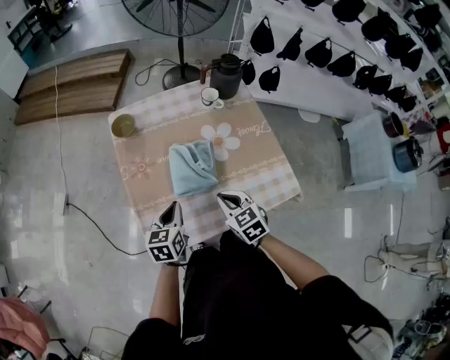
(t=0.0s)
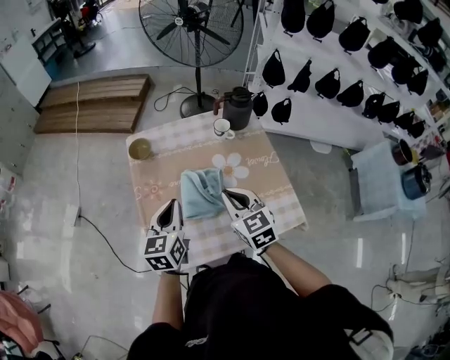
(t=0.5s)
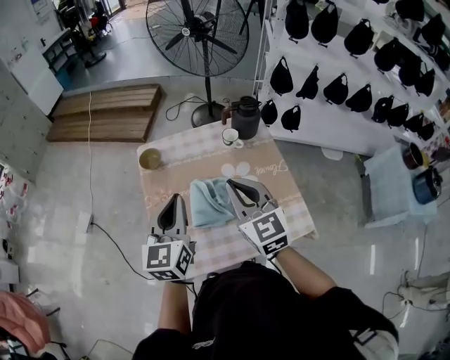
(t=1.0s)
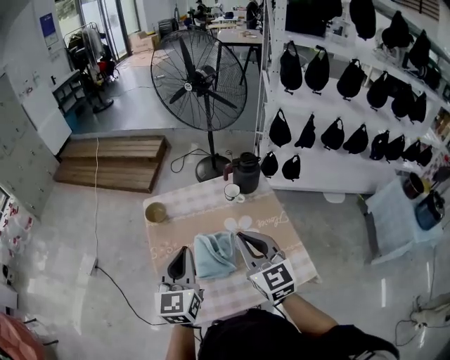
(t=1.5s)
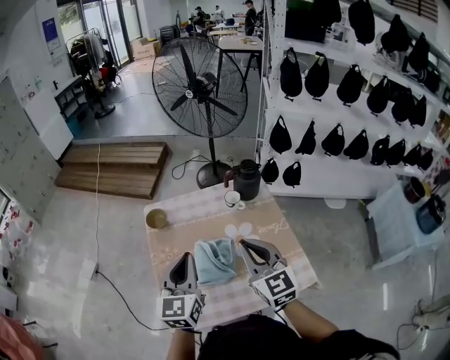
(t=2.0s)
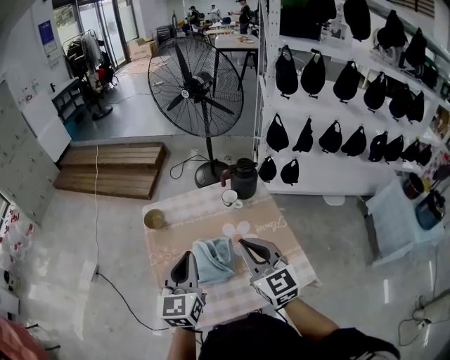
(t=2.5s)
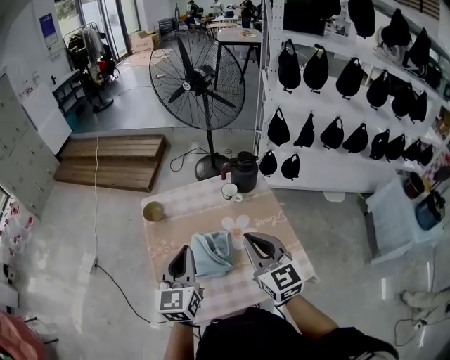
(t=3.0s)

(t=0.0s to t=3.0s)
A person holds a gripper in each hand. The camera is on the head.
t=0.0s - t=1.5s: Both grippers travel together upward, approximately 25 cm. The right gripper angles its fingers upward, by about 30 degrees, while the left gripper swivels about 30 degrees.
t=1.5s - t=3.0s: The grippers stay close to where they were, moving slightly.

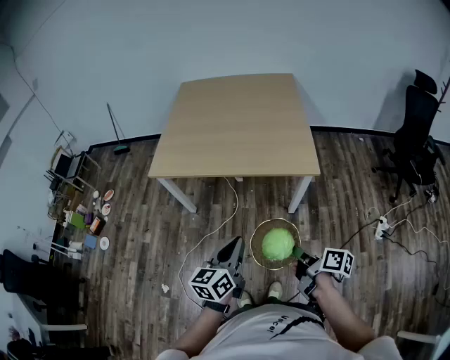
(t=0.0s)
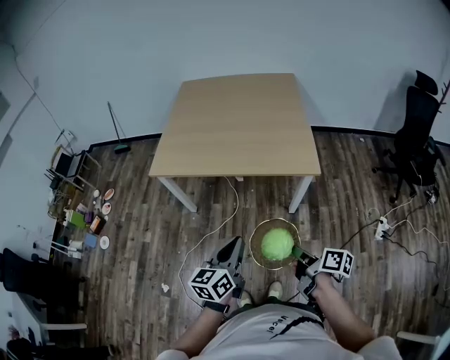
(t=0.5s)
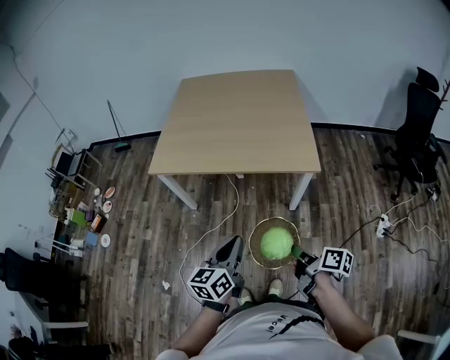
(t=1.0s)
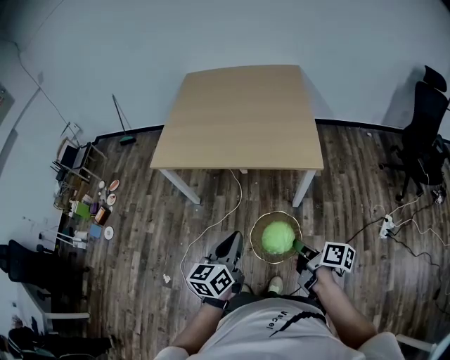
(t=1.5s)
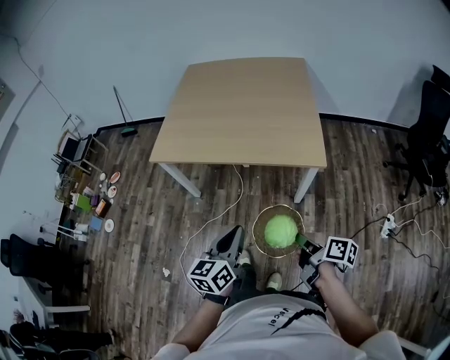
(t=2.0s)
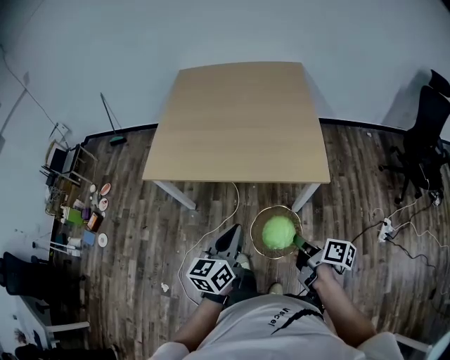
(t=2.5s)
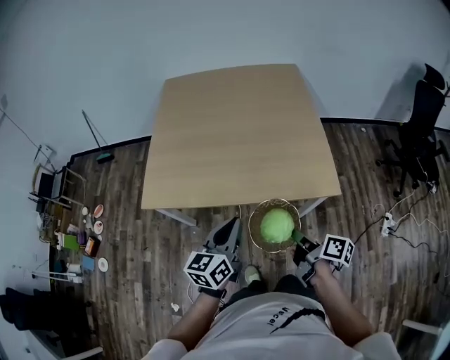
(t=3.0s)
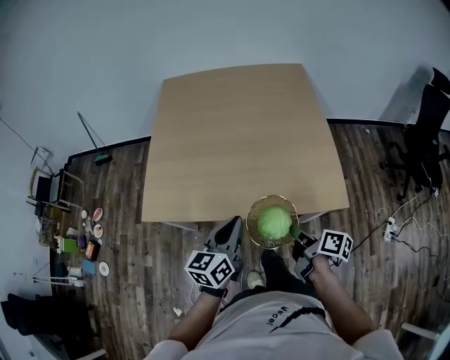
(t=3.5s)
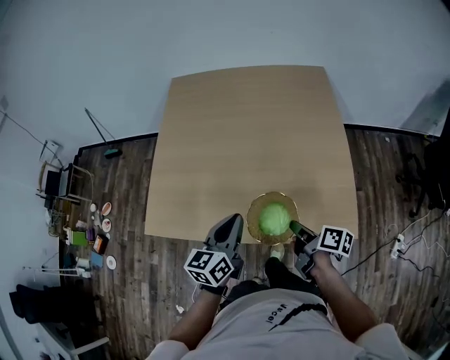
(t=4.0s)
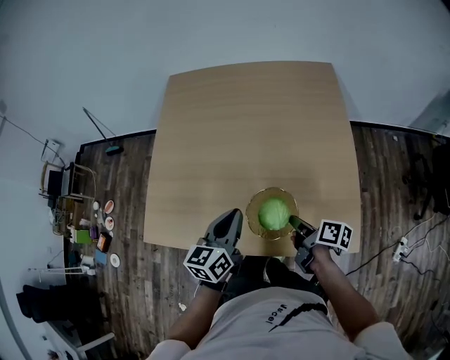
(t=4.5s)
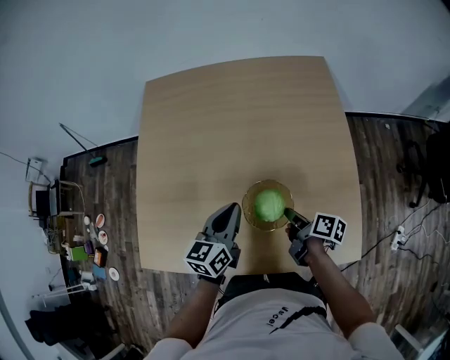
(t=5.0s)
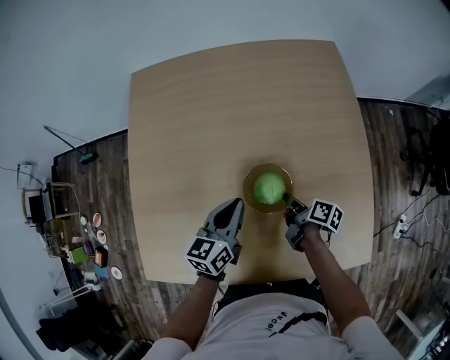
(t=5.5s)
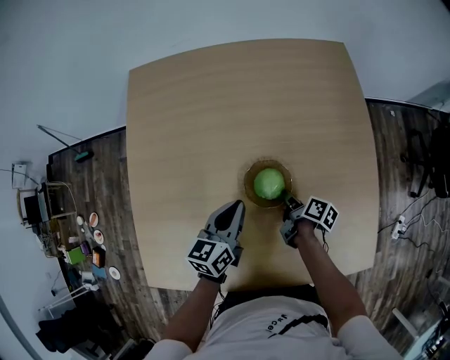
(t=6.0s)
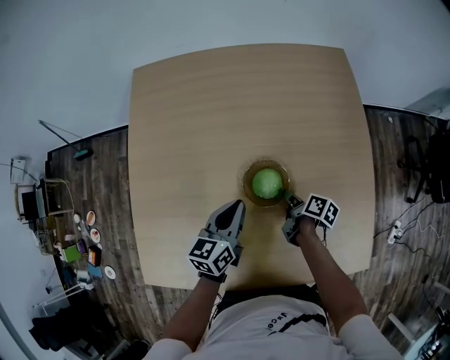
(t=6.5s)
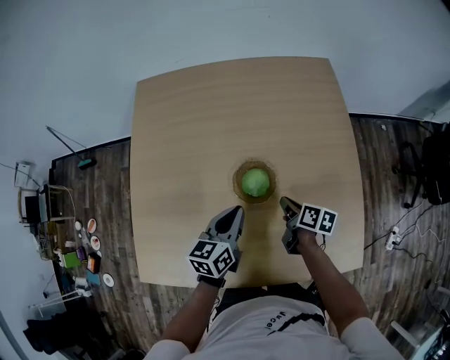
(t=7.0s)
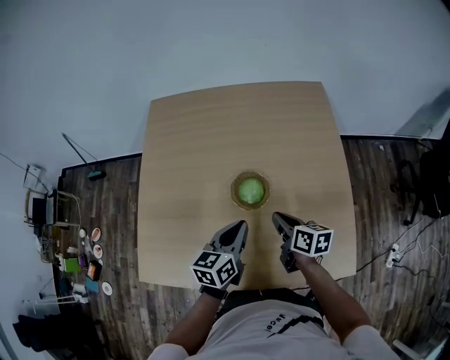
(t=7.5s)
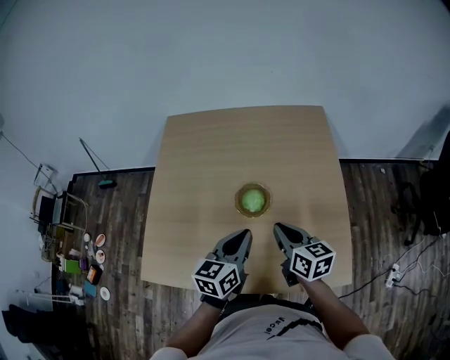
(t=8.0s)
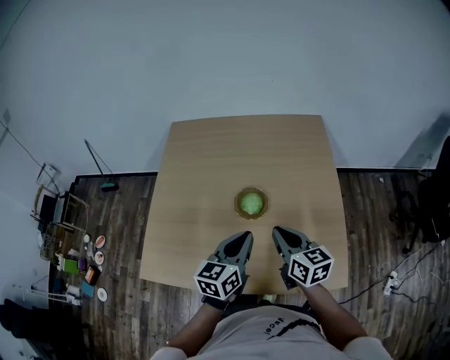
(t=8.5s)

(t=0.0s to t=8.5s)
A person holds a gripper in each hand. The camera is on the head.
t=2.0s - t=4.0s: The left gripper shifts by about 50 cm.
t=4.0s - t=6.5s: The left gripper ends up roughly 30 cm from where it was.
t=6.5s - t=8.5s: The left gripper shifts by some 25 cm.

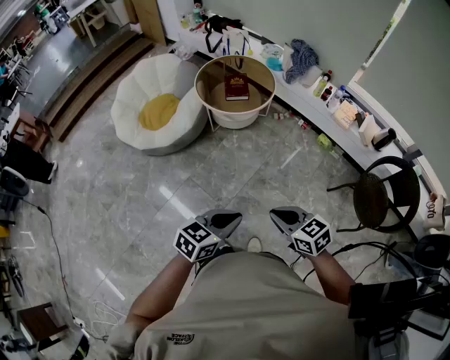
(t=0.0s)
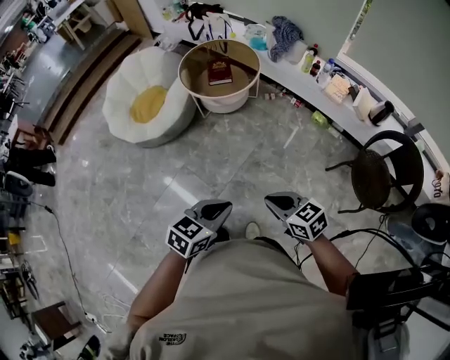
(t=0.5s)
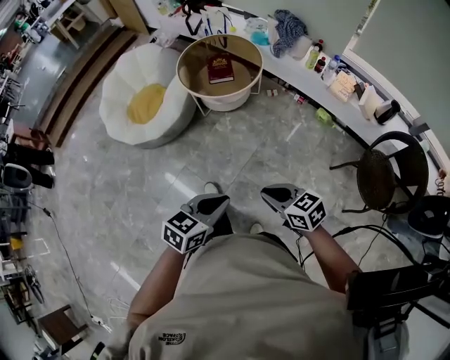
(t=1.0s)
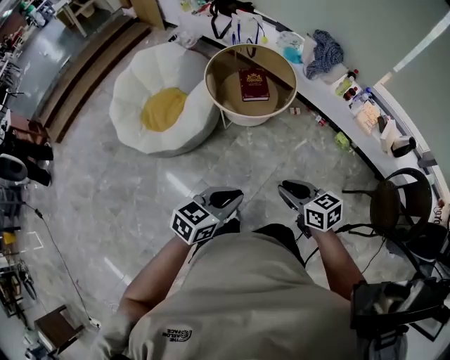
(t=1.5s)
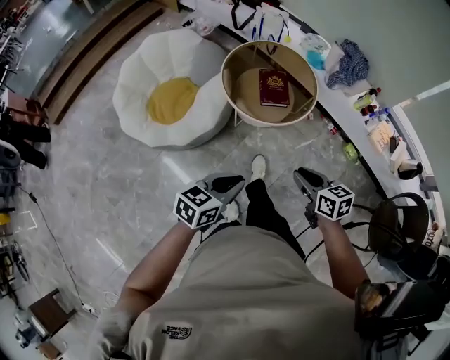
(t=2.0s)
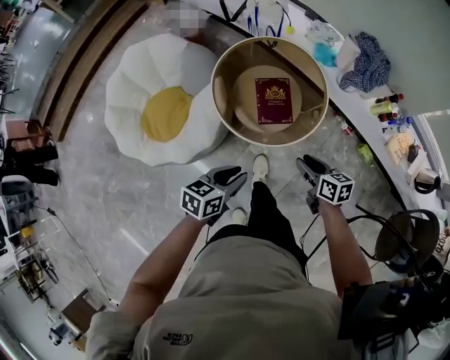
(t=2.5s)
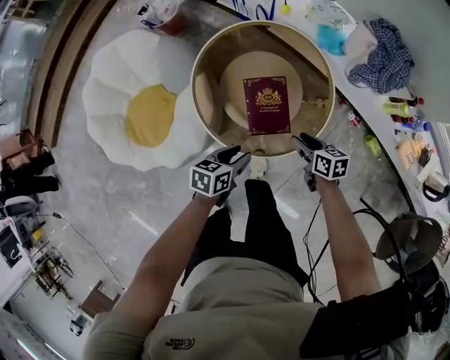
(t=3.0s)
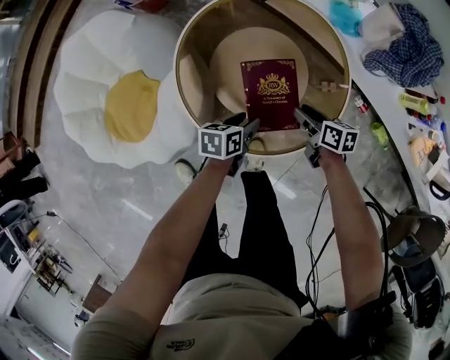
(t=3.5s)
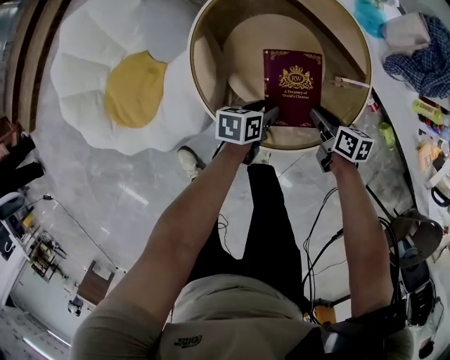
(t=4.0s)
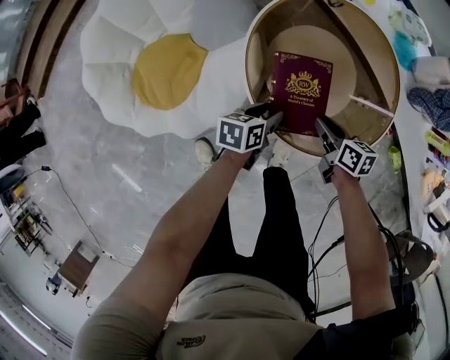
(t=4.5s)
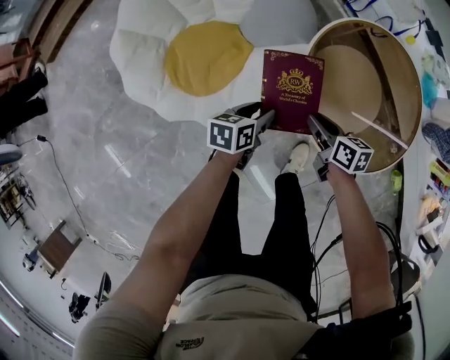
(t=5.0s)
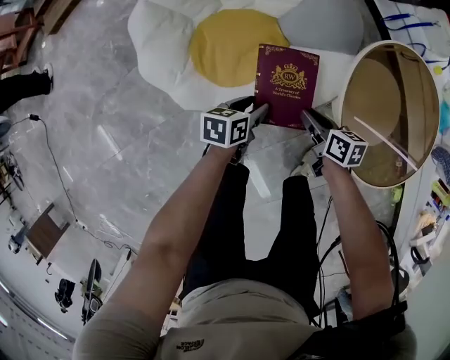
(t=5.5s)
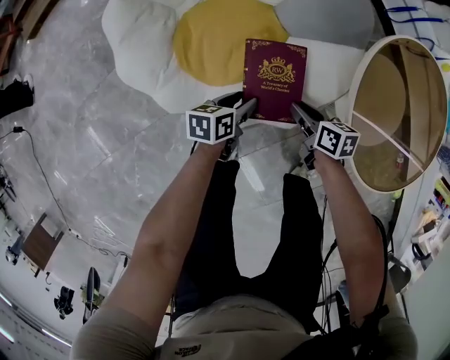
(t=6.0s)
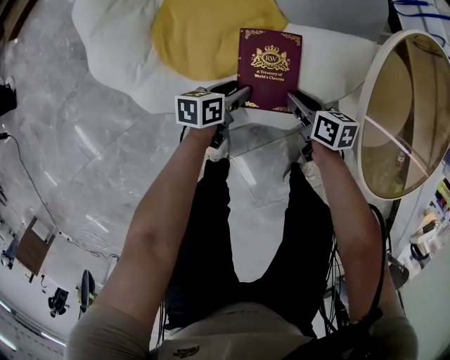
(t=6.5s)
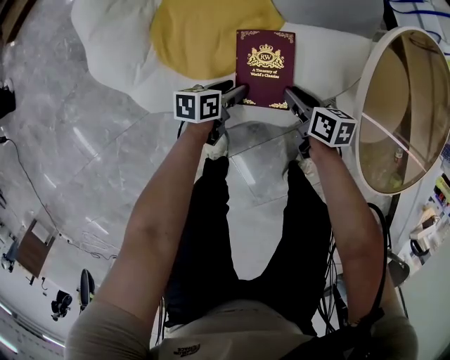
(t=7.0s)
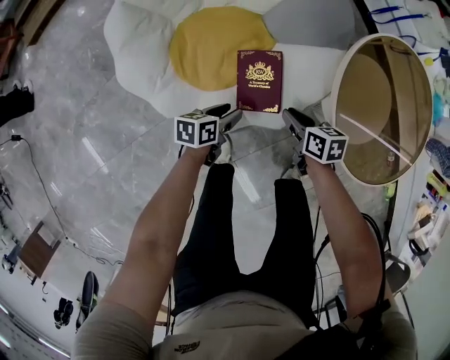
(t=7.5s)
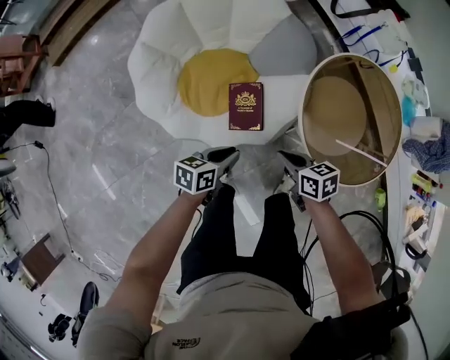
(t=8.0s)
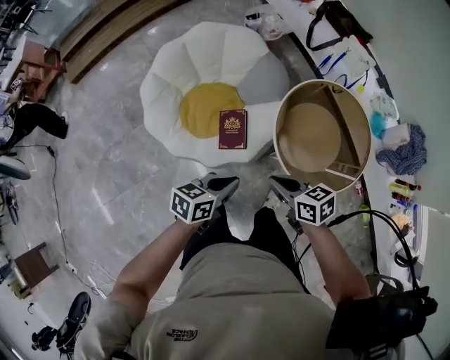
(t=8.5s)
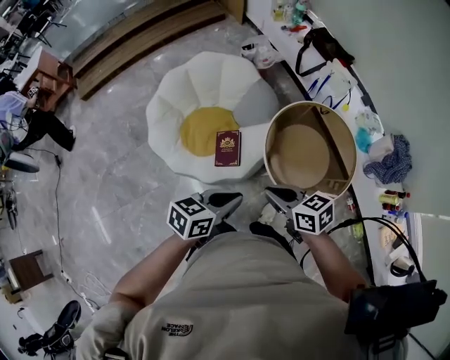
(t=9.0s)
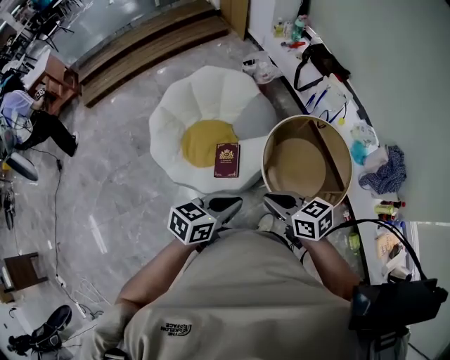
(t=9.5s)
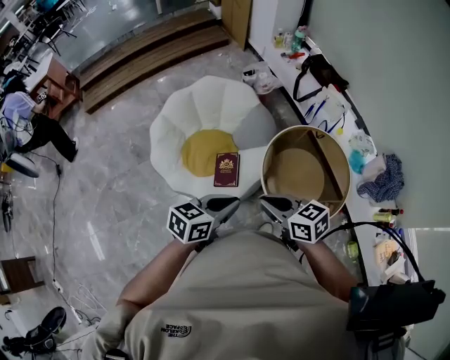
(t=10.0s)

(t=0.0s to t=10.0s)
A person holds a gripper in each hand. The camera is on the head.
t=0.0s - t=2.0s: The two grippers travel together, forward, about 40 cm.
t=2.0s - t=4.0s: The pair of grippers is taken forward, roughly 50 cm. The two grippers go about 40 cm downward. The right gripper changes its angle by about 30 degrees; the left gripper swivels some 40 degrees, and opens up.
t=4.0s - t=6.0s: The two grippers travel together, about 50 cm. The right gripper turns by roughly 30 degrees; the left gripper changes its angle by approximately 20 degrees.
t=6.0s - t=8.0s: Both grippers move upward, some 25 cm. The left gripper closes up; the right gripper closes its fingers.
t=8.0s - t=10.0s: Both grippers move upward, approximately 35 cm. The left gripper rotates approximately 20 degrees. Meanwhile the right gripper swivels approximately 30 degrees.

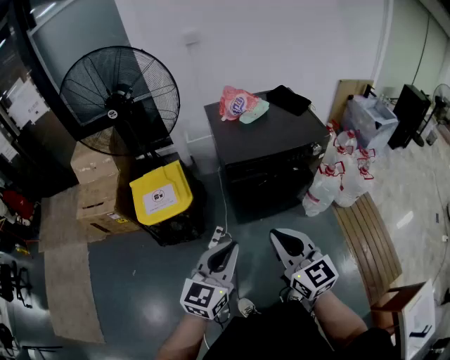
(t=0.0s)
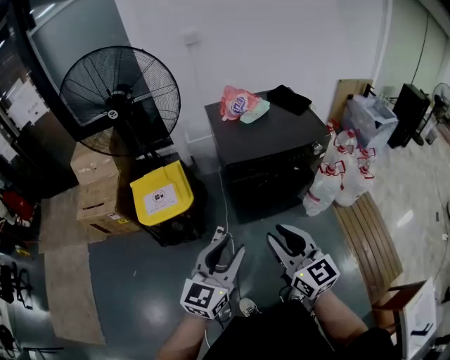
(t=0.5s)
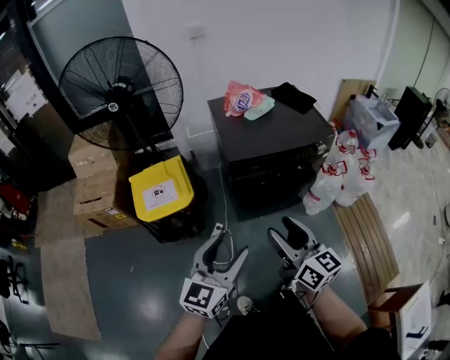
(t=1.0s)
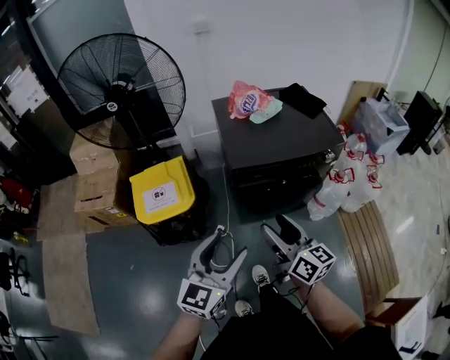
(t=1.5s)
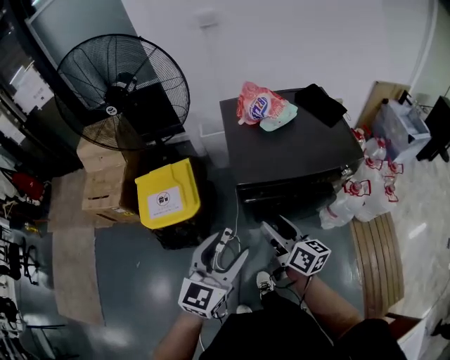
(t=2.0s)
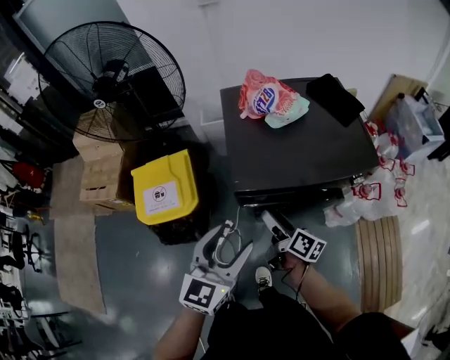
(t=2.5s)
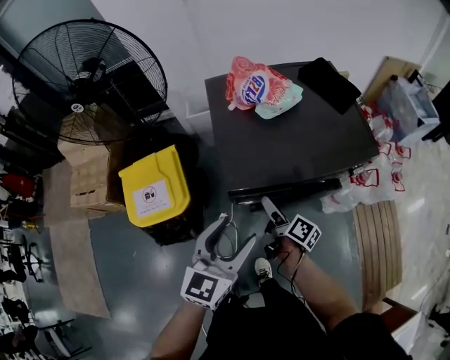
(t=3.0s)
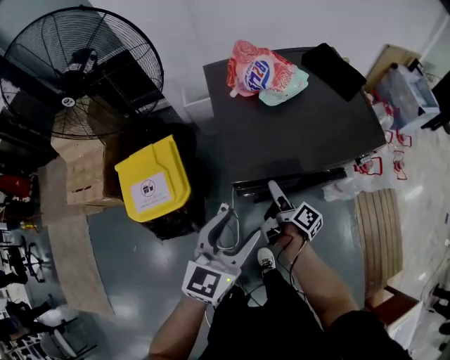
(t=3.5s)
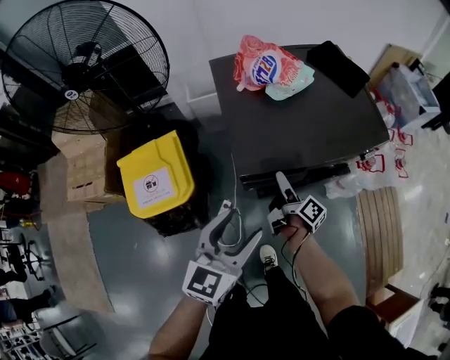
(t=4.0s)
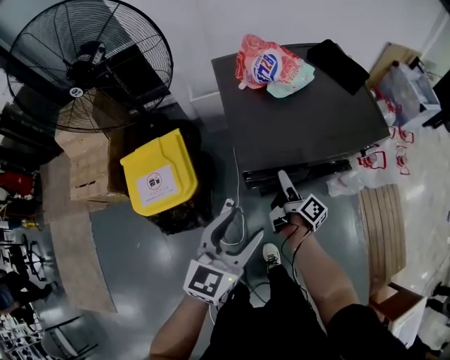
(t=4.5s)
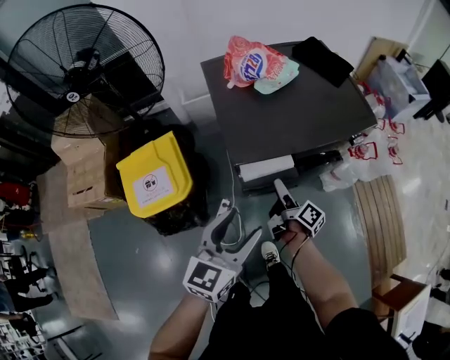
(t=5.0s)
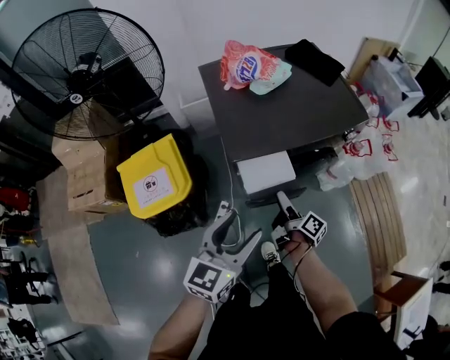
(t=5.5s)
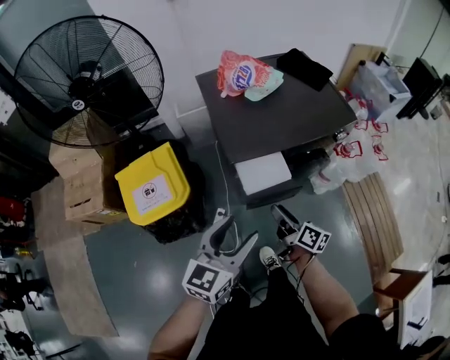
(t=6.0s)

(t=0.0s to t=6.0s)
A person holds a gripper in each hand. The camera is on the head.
t=0.0s - t=2.0s: The right gripper goes some 25 cm forward and downward, rolls clockwise, seen from behind, by some 40 degrees, and opens up, while the left gripper is displaced forward by about 20 cm, and opens up.
t=2.0s - t=4.0s: The right gripper shifts some 25 cm downward and forward, and changes its angle by about 40 degrees. Meanwhile the left gripper travels forward and downward by some 15 cm.
t=4.0s - t=6.0s: The left gripper shifts roughly 10 cm backward, while the right gripper is displaced backward by approximately 15 cm, rotates approximately 20 degrees, and closes up.
